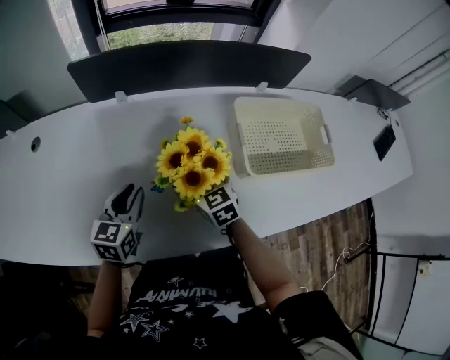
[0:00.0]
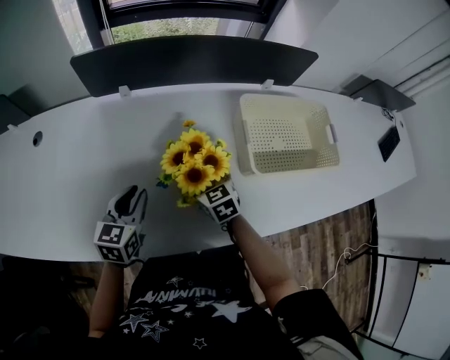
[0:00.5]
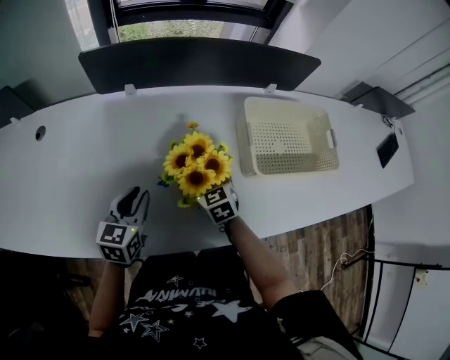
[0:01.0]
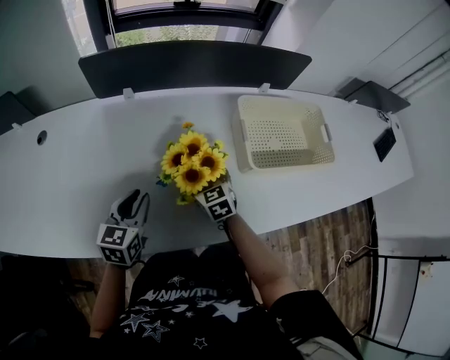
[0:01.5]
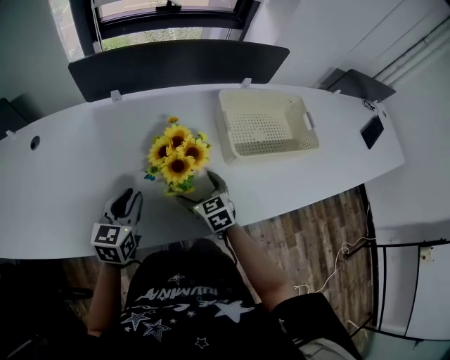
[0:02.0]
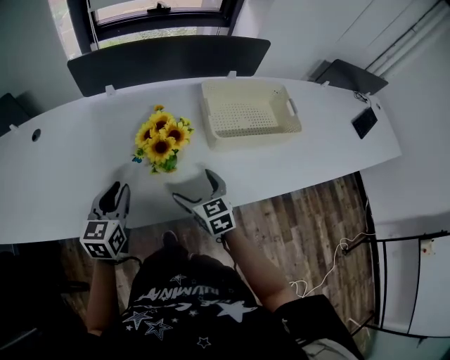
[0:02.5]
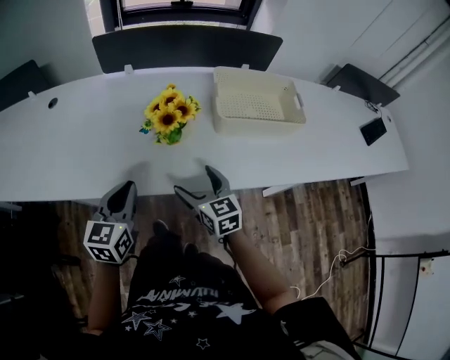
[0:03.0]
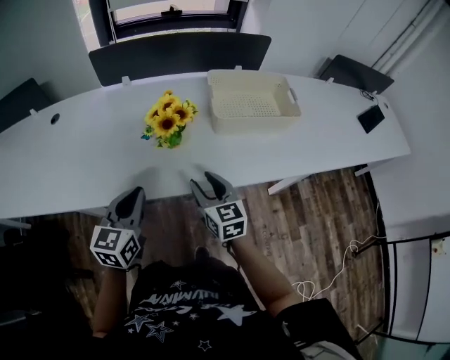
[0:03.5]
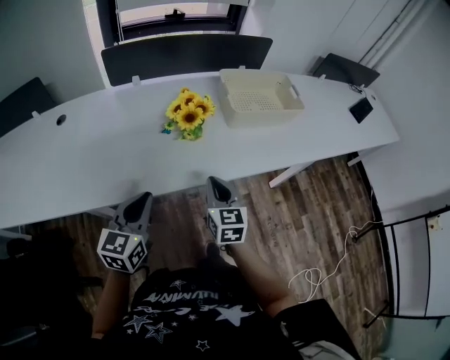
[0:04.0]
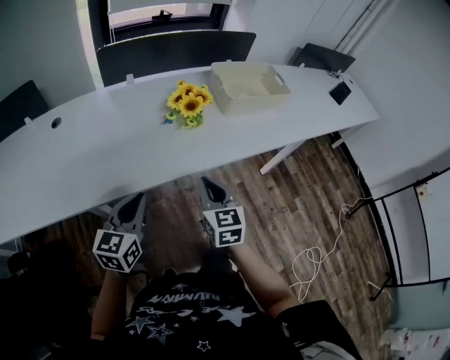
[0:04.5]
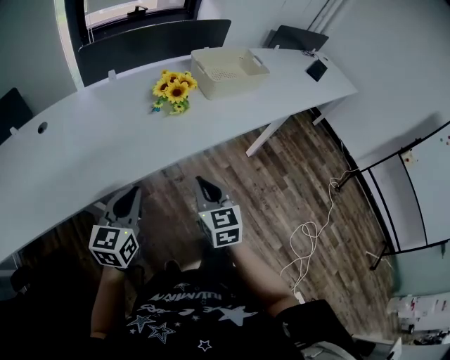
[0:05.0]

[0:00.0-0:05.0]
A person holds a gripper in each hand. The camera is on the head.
0:00.0 to 0:02.5: The two grippers go about 10 cm backward.
0:02.5 to 0:05.0: The right gripper ends up some 30 cm from where it was, rotates some 30 degrees, and closes, while the left gripper changes place by about 25 cm, swivels roughly 20 degrees, and closes.

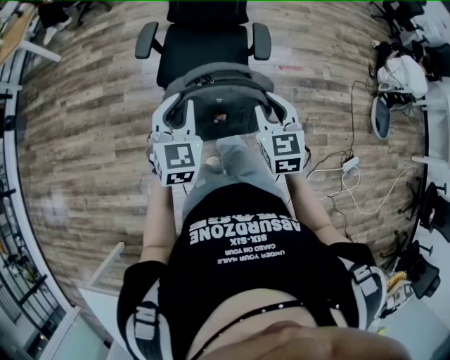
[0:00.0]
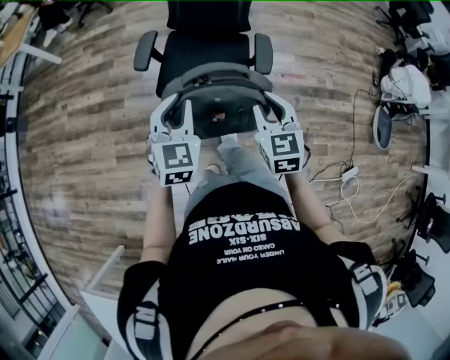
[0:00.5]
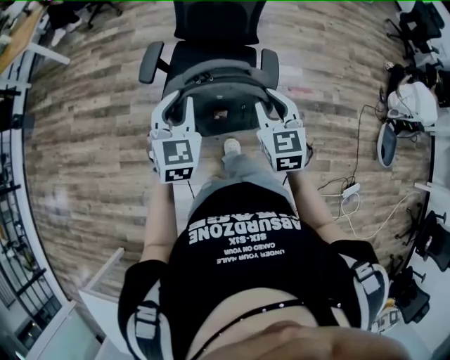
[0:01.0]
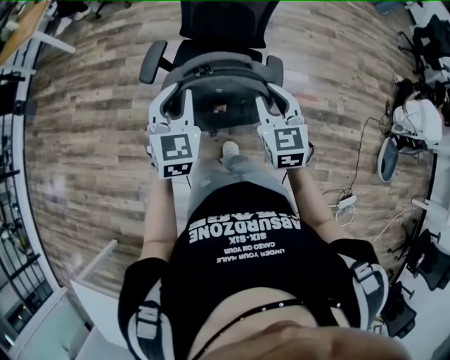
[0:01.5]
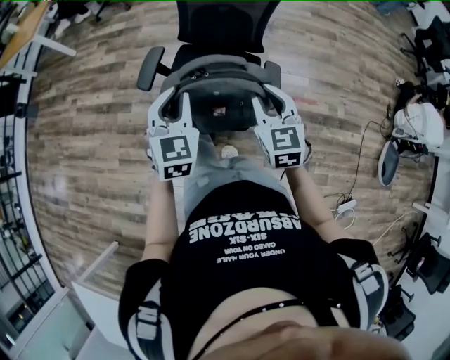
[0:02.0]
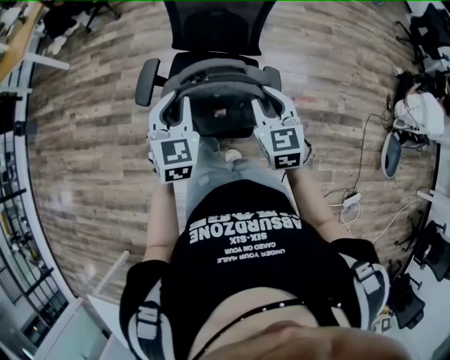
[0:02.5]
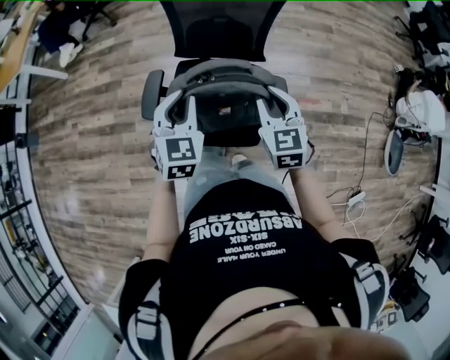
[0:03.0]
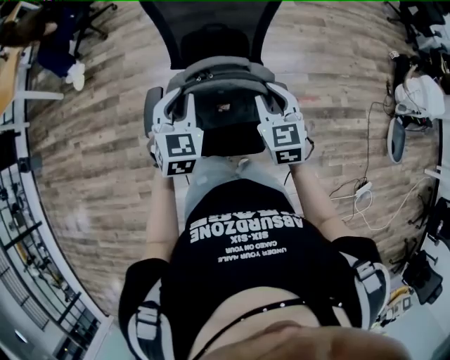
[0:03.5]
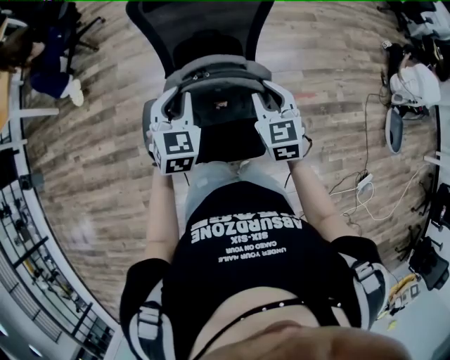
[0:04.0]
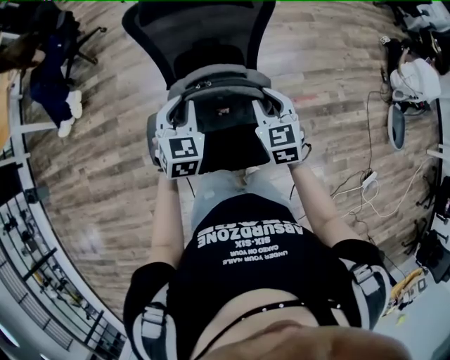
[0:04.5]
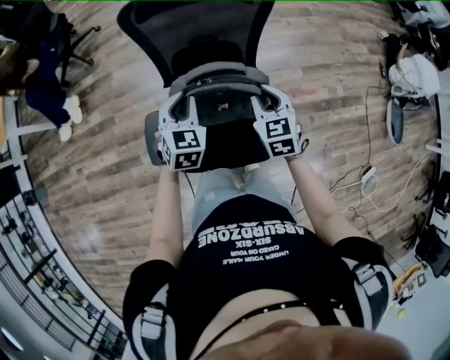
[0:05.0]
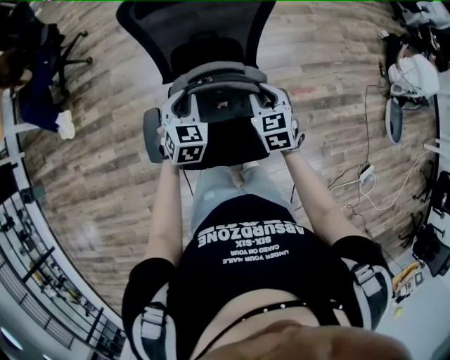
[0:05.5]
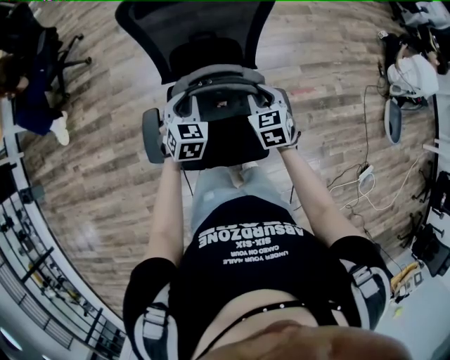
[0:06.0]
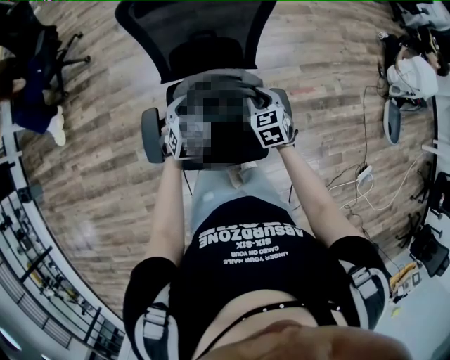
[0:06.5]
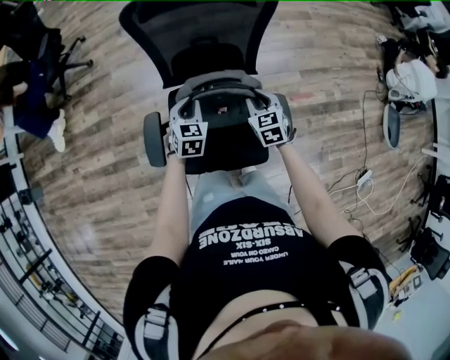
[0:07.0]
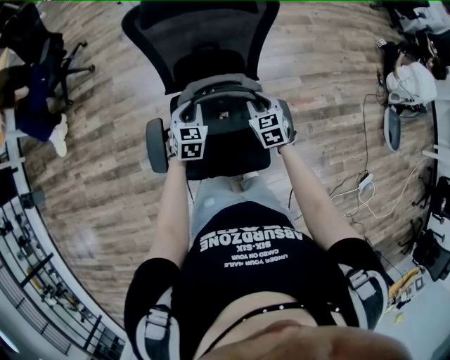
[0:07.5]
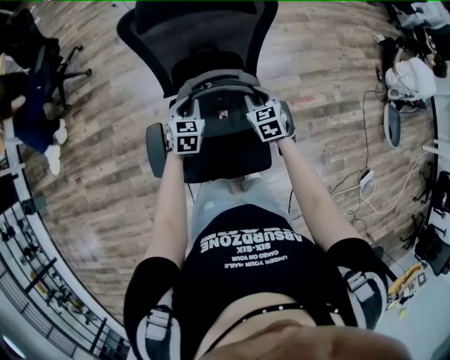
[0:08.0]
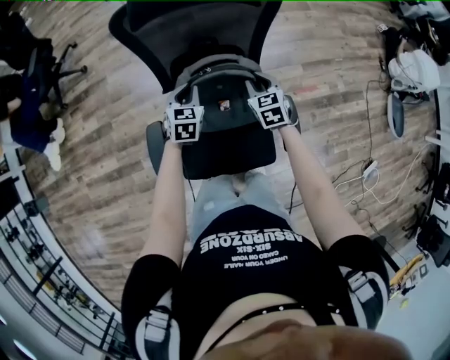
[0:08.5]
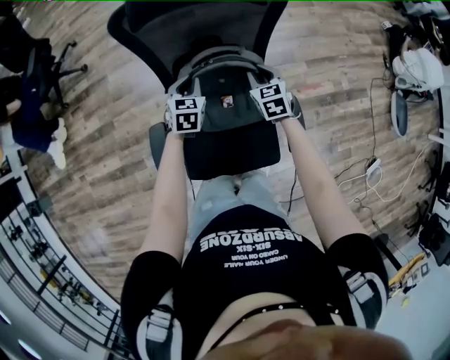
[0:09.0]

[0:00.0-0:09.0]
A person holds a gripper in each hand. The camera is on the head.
0:00.0 to 0:02.0: Both grippers travel together forward, roughly 25 cm.
0:02.0 to 0:04.5: The grippers both shift forward by roughly 30 cm. The left gripper changes its angle by some 20 degrees.
0:04.5 to 0:07.0: Both grippers travel together downward, approximately 15 cm.
0:07.0 to 0:09.0: The two grippers go roughly 15 cm forward.

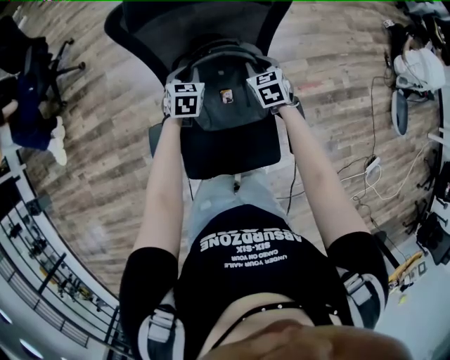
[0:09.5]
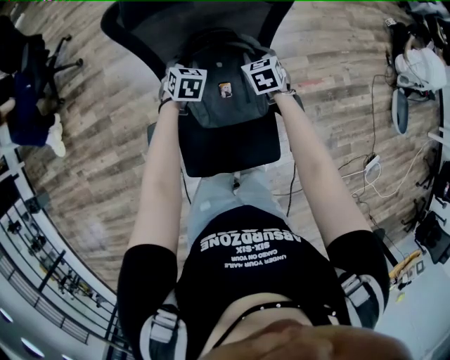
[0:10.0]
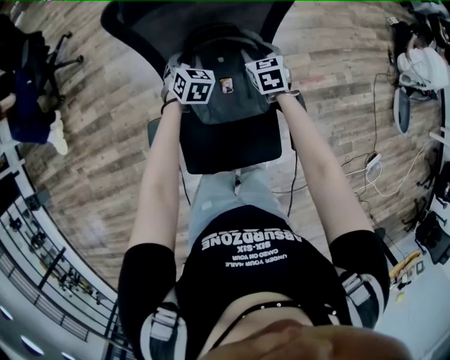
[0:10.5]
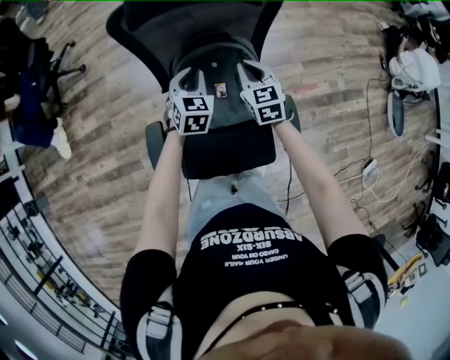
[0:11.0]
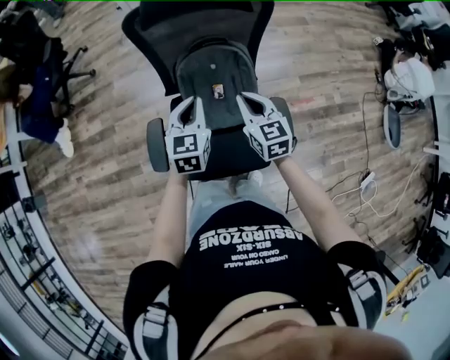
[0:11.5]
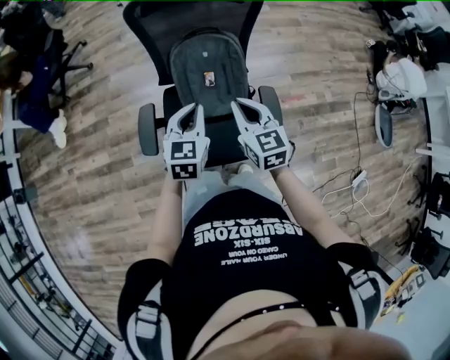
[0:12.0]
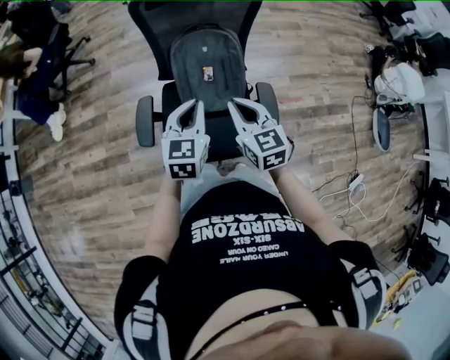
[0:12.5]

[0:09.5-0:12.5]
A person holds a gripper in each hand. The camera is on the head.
0:09.5 to 0:11.0: The two grippers go roughly 10 cm upward. The right gripper opens, then closes once more.
0:11.0 to 0:12.5: The two grippers go roughly 35 cm backward and upward.

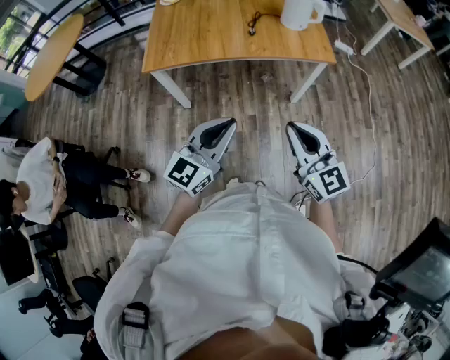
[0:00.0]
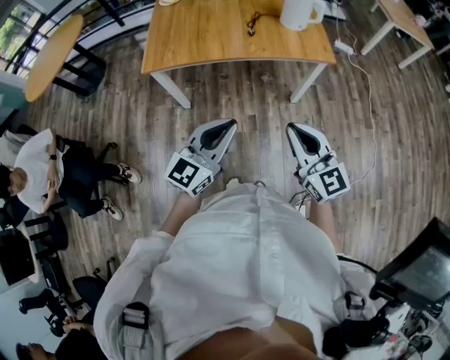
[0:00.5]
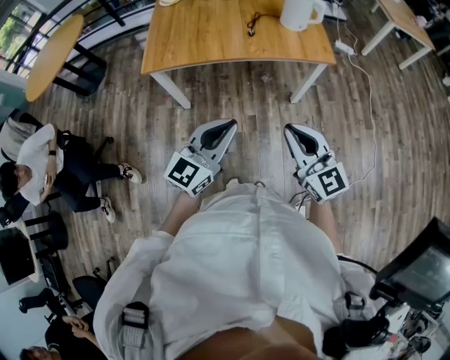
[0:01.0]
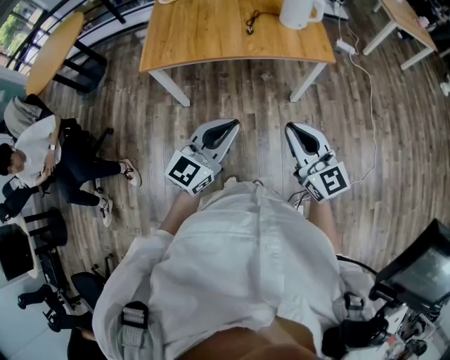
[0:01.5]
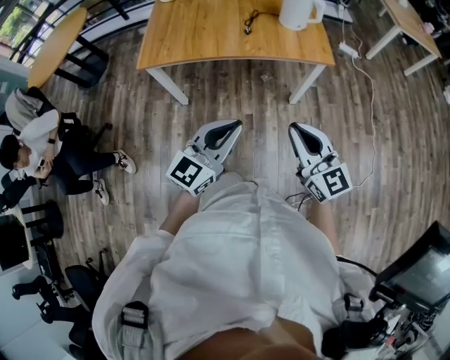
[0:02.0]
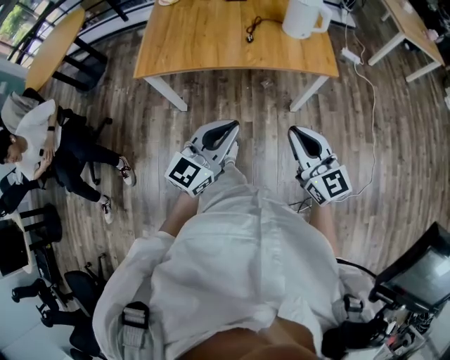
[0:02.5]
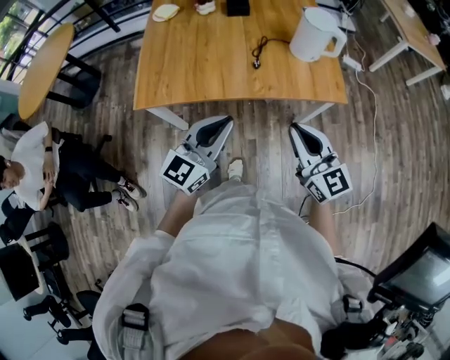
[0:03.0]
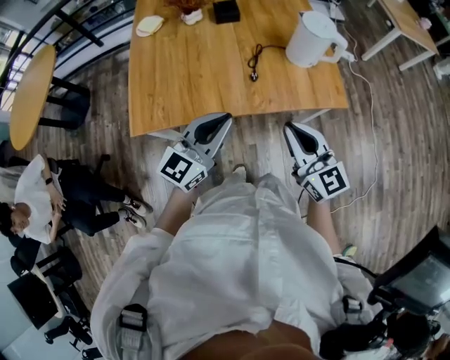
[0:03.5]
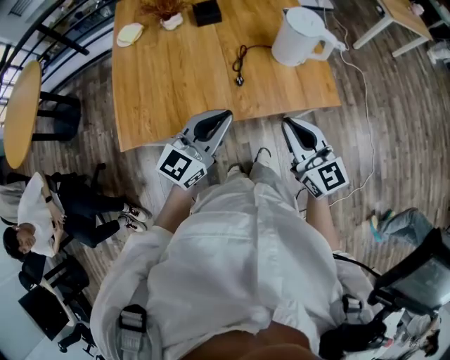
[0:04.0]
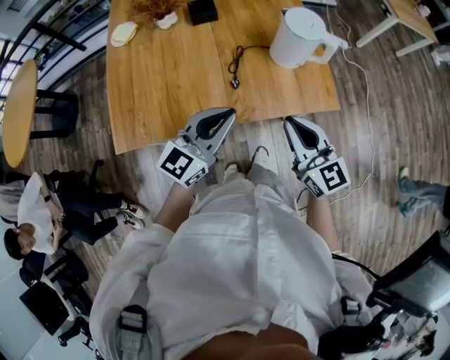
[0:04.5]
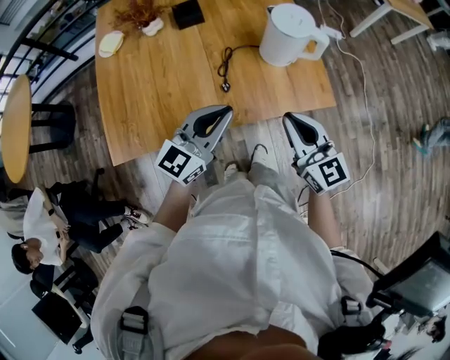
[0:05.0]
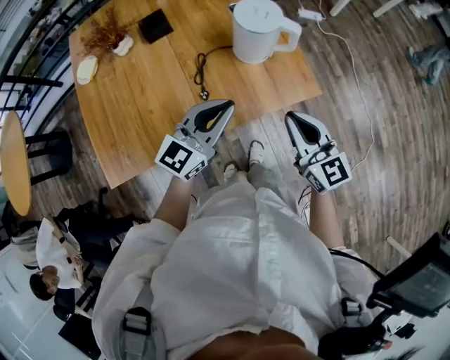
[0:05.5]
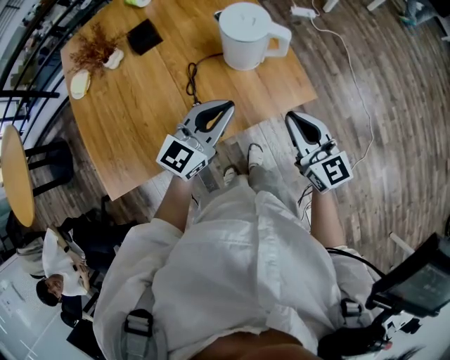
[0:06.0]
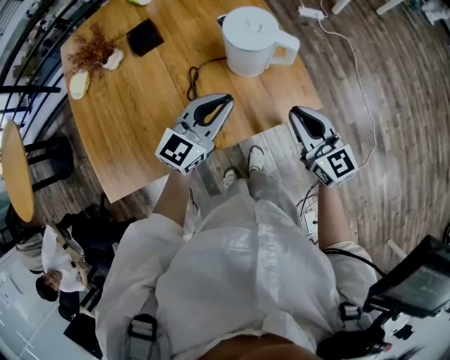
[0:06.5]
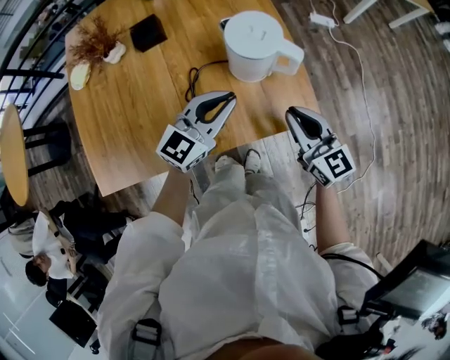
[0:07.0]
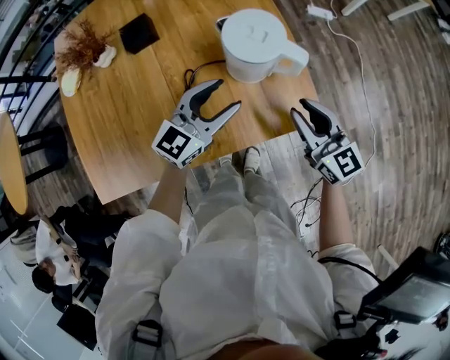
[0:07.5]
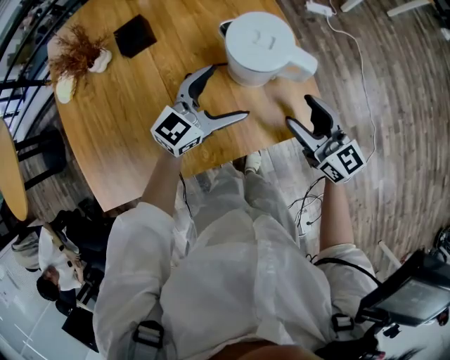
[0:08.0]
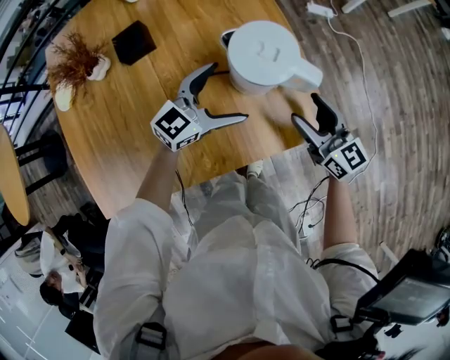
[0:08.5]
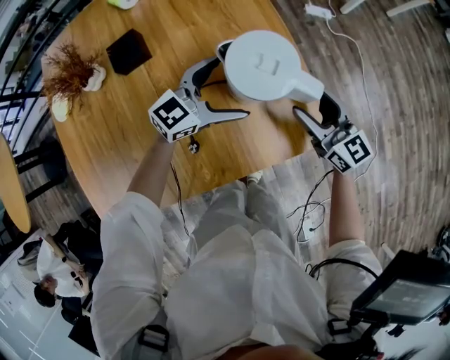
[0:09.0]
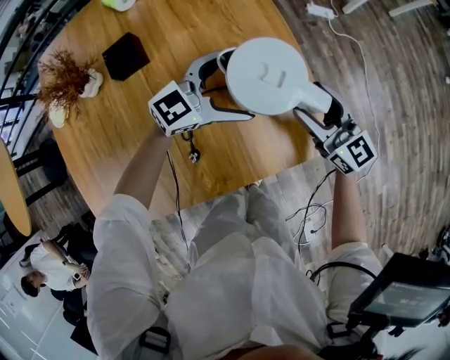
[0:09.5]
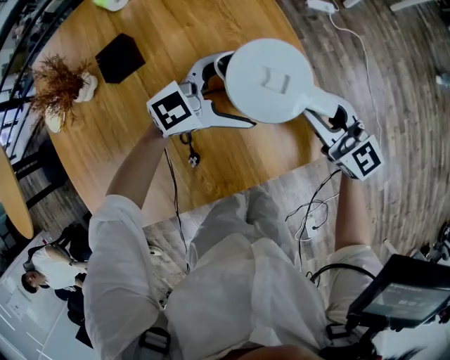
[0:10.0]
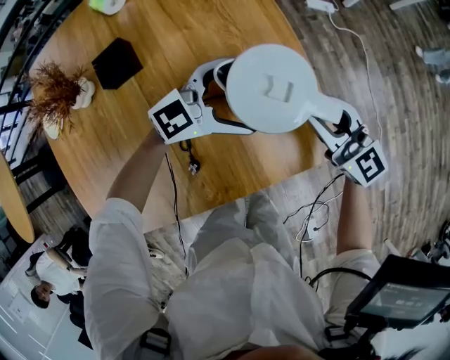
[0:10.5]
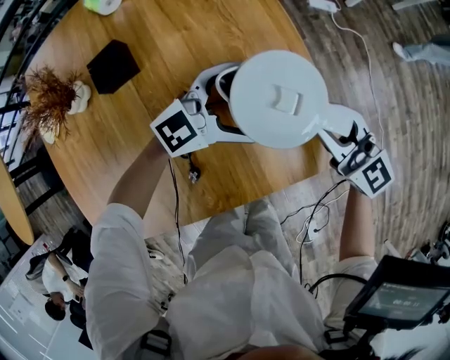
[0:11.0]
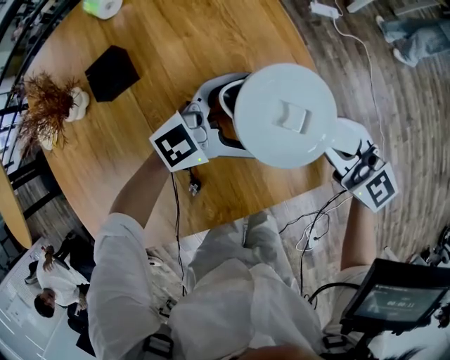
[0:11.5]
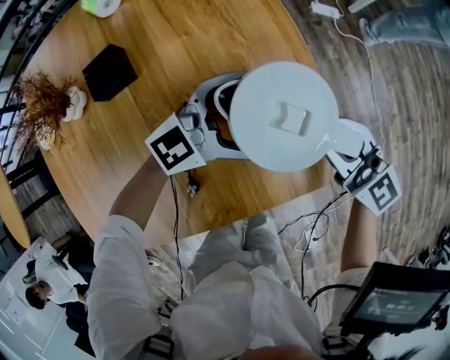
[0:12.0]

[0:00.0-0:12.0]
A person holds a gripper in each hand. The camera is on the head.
0:00.0 to 0:02.0: Both grippers travel together to the right, about 5 cm.
0:02.0 to 0:04.0: The two grippers go approximately 35 cm forward.
0:04.0 to 0:06.0: The left gripper is displaced forward and to the right by approximately 20 cm, while the right gripper shifts some 15 cm to the right and forward.
0:06.0 to 0:08.0: The grippers both shift forward and downward by approximately 15 cm. The right gripper opens its fingers; the left gripper opens its fingers.
0:08.0 to 0:10.0: The left gripper moves about 10 cm, and swivels some 30 degrees. The right gripper shifts by some 10 cm, and closes its fingers.
0:10.0 to 0:12.0: The grippers stay close to where they were, moving slightly.
